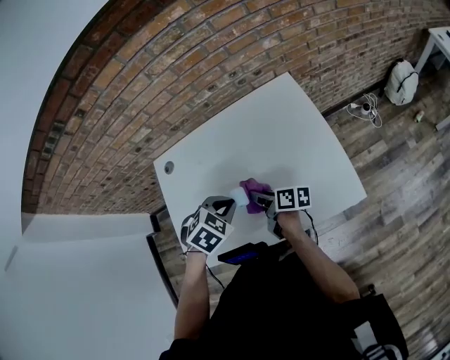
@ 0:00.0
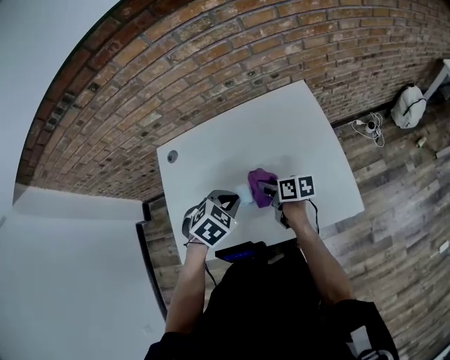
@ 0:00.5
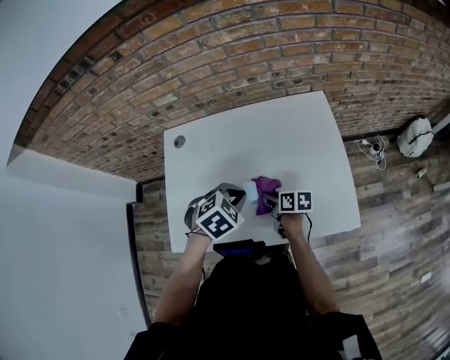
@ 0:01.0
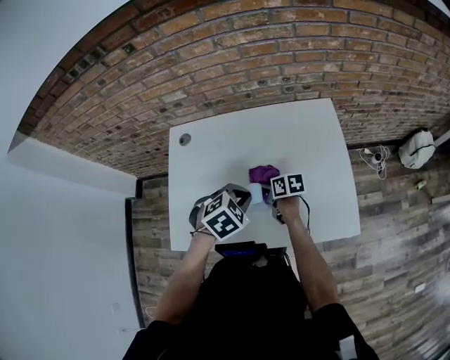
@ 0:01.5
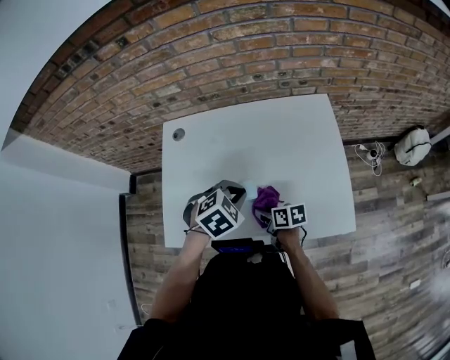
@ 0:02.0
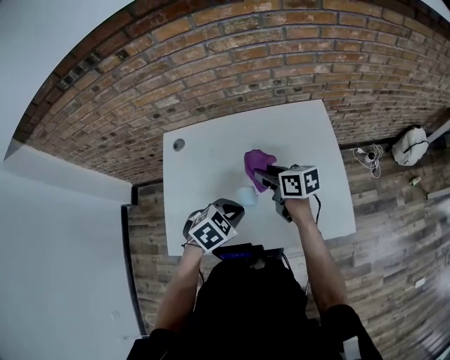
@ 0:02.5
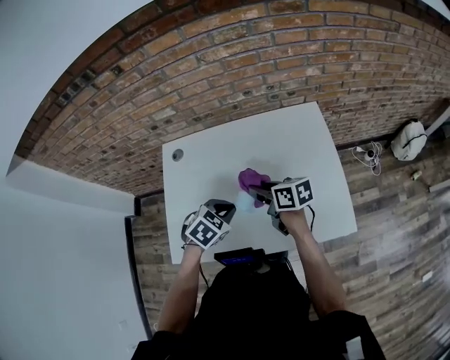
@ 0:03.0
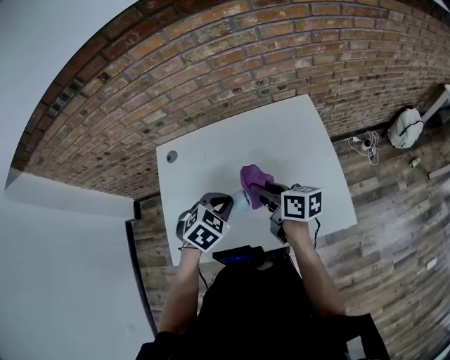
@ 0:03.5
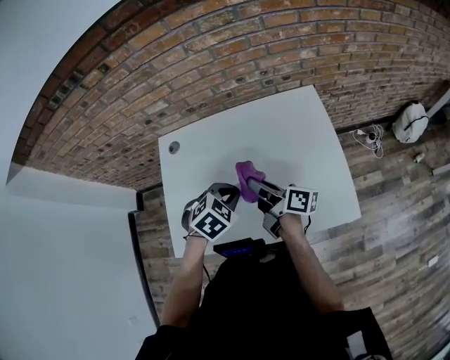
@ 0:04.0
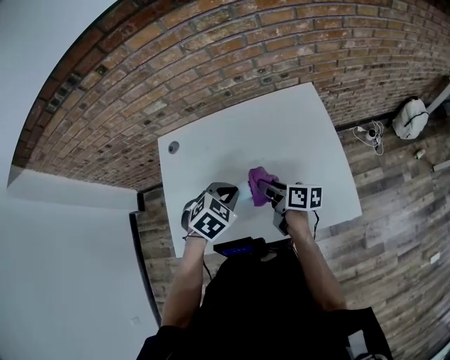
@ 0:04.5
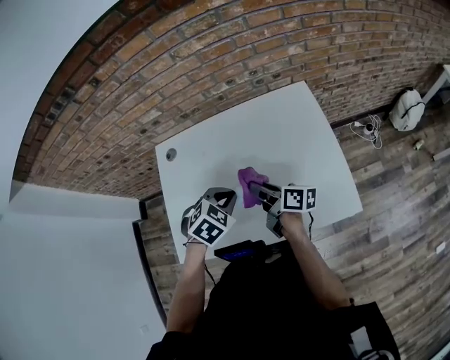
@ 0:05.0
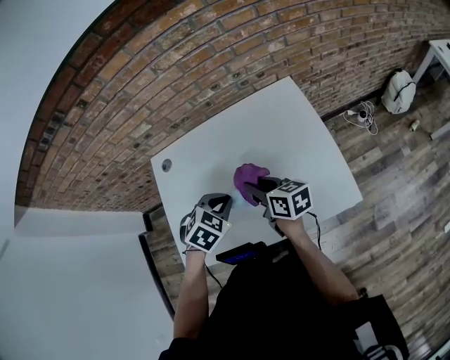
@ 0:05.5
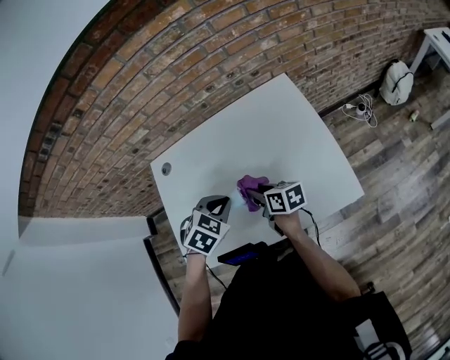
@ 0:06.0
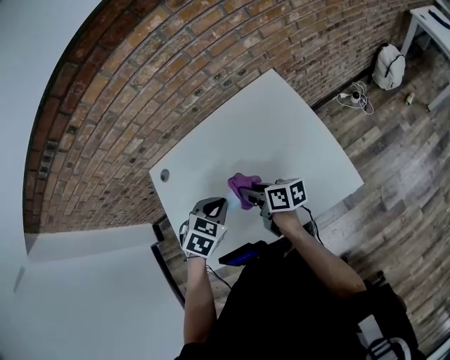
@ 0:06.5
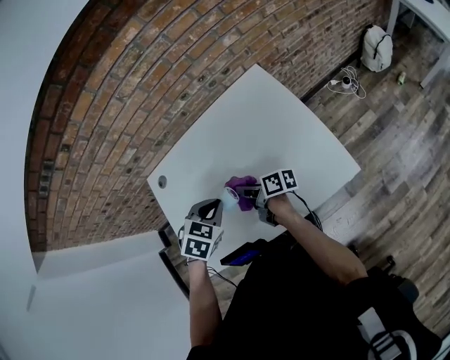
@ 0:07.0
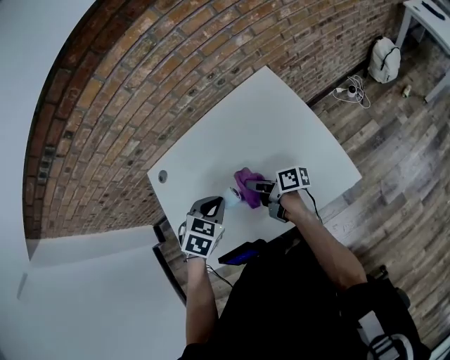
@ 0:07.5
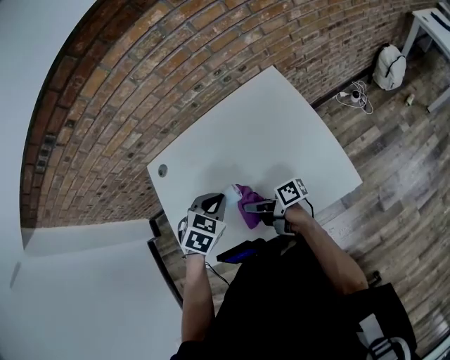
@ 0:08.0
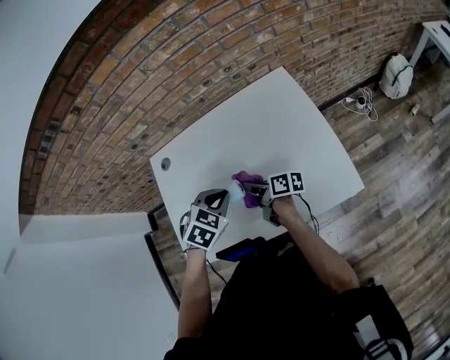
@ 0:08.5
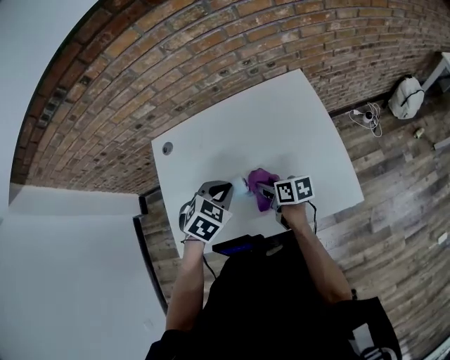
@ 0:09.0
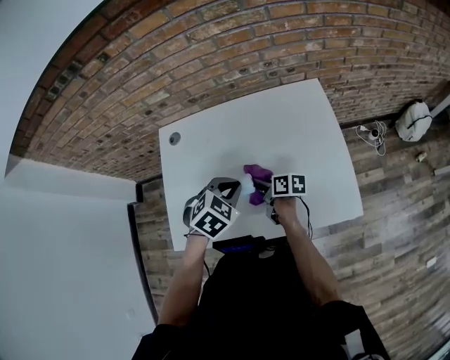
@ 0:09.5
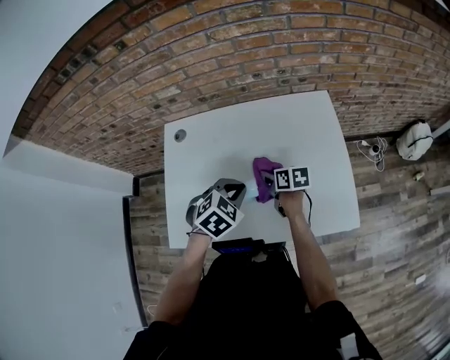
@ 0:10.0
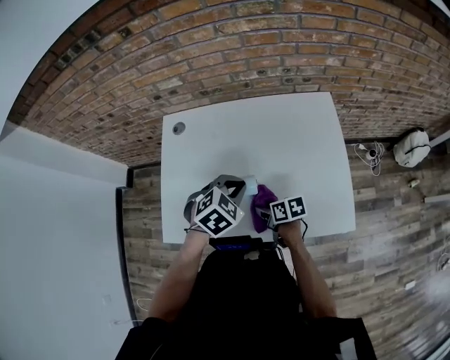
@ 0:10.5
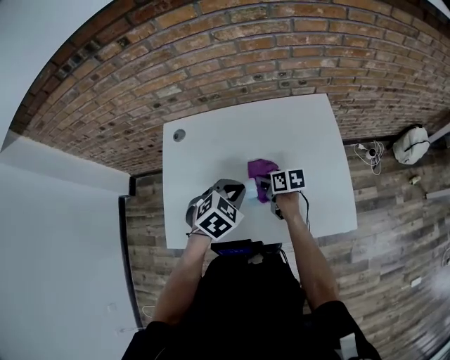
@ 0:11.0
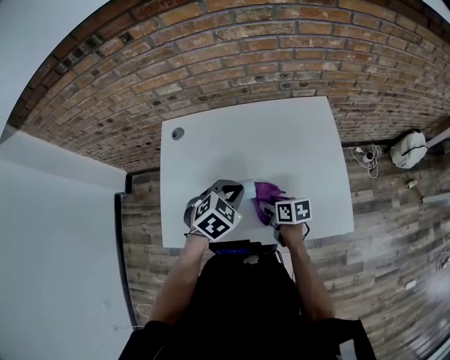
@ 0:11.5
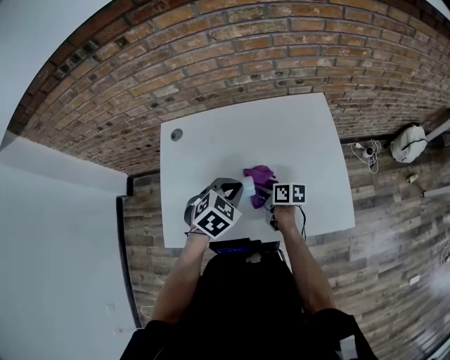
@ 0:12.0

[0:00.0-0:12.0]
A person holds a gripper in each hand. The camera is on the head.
0:00.0 to 0:02.0: The right gripper shifts about 10 cm backward and downward, and swivels approximately 30 degrees.
0:02.0 to 0:04.0: The right gripper goes roughly 20 cm upward and forward, and angles its fingers upward, by some 40 degrees.
0:04.0 to 0:06.0: The right gripper goes up and down, approximately 10 cm each way, reversing 2 times, and changes its angle by approximately 30 degrees.
0:06.0 to 0:08.0: The right gripper moves backward, about 5 cm, and changes its angle by approximately 40 degrees.
0:08.0 to 0:10.0: The right gripper shifts approximately 10 cm forward and downward, and angles its fingers downward, by roughly 40 degrees.
0:10.0 to 0:12.0: The right gripper swings forward and backward, some 10 cm each way, with 3 reversals.

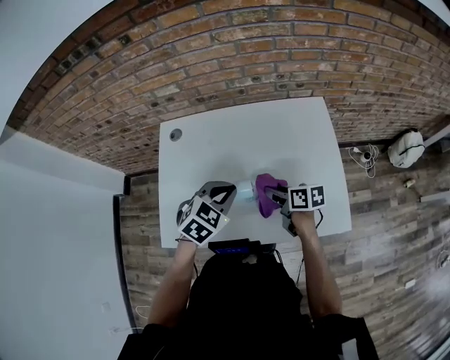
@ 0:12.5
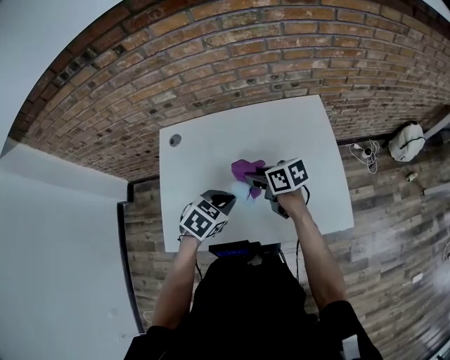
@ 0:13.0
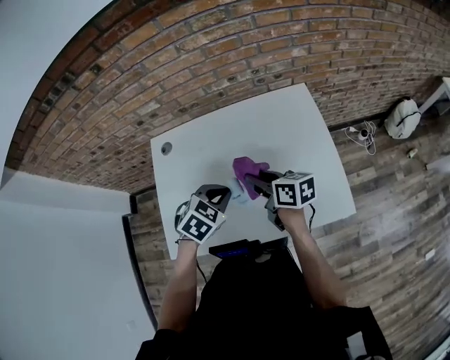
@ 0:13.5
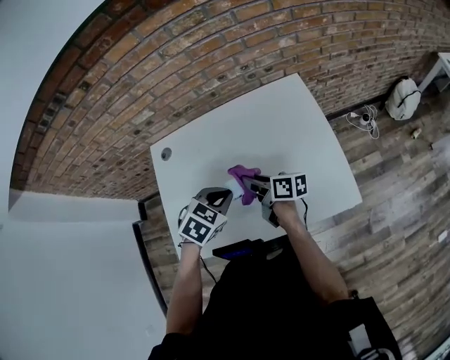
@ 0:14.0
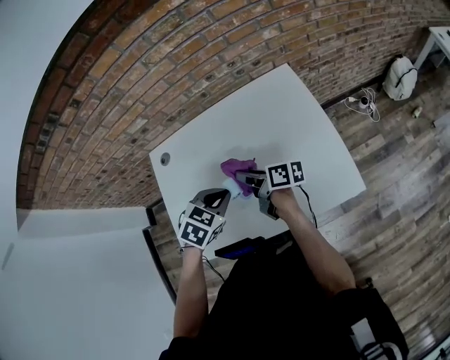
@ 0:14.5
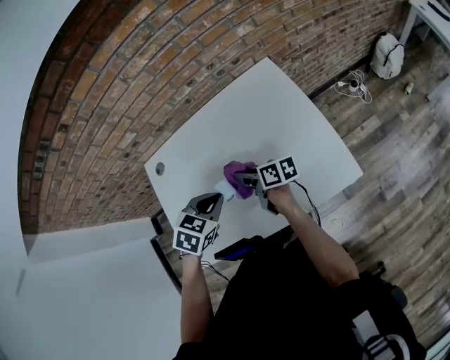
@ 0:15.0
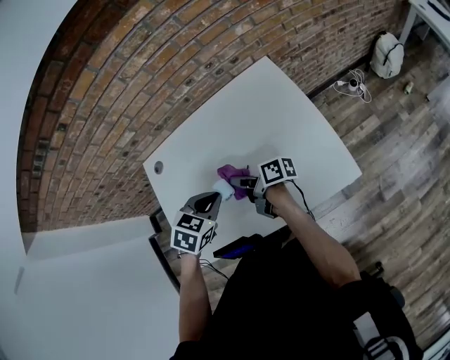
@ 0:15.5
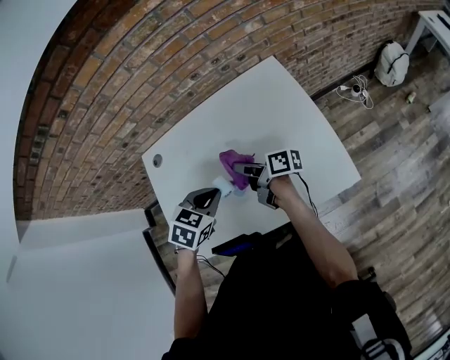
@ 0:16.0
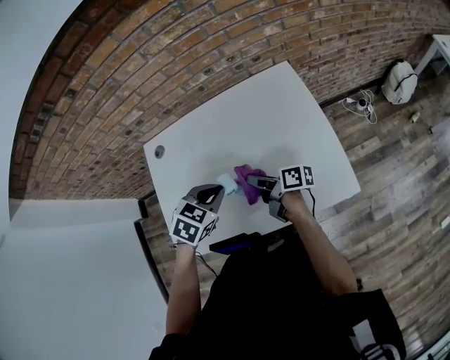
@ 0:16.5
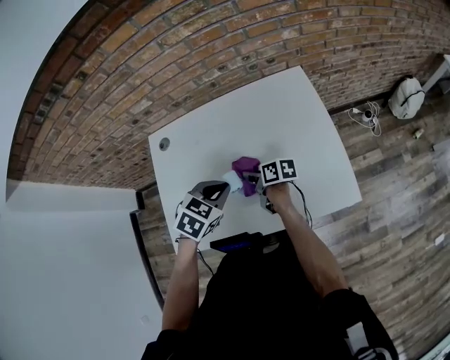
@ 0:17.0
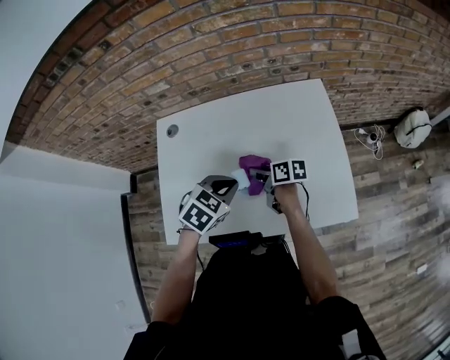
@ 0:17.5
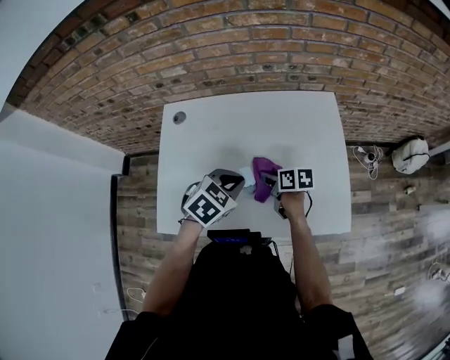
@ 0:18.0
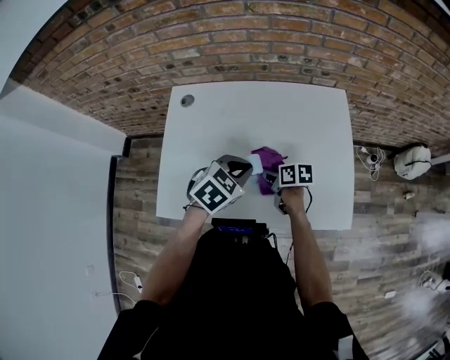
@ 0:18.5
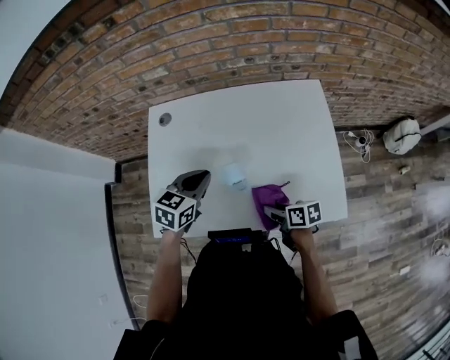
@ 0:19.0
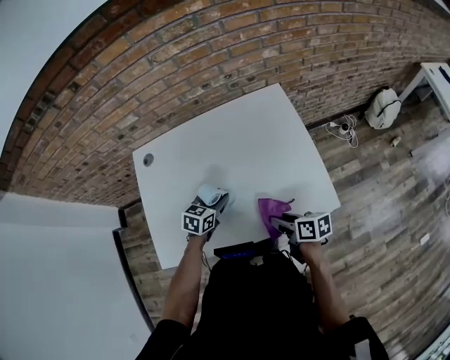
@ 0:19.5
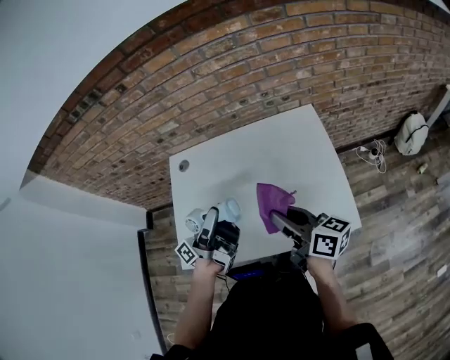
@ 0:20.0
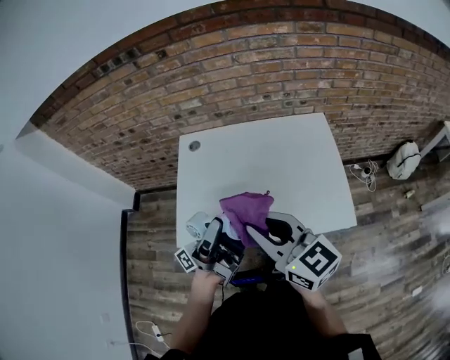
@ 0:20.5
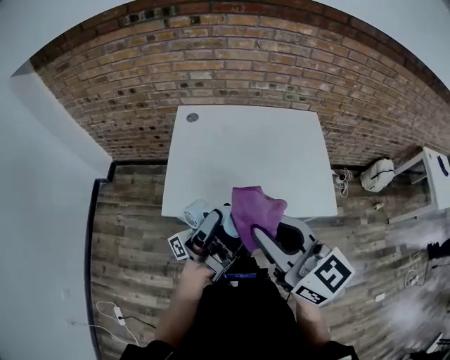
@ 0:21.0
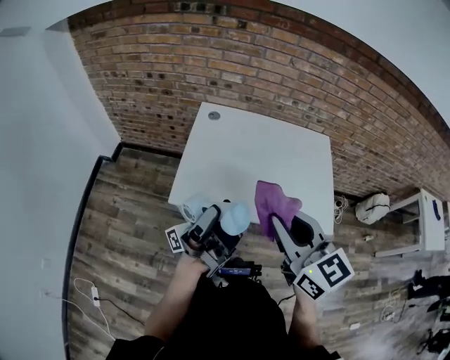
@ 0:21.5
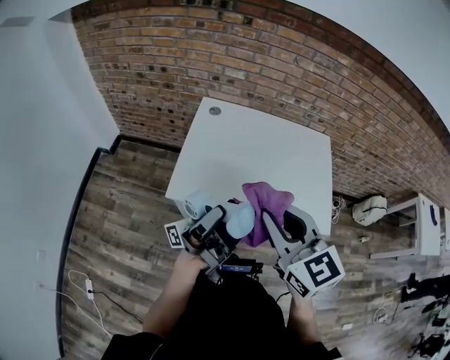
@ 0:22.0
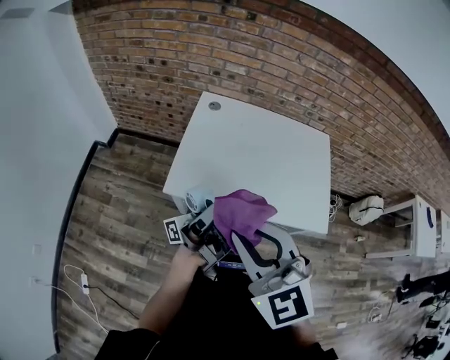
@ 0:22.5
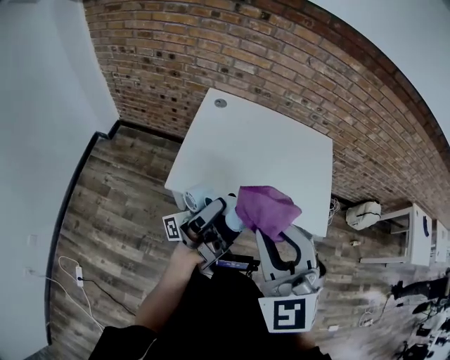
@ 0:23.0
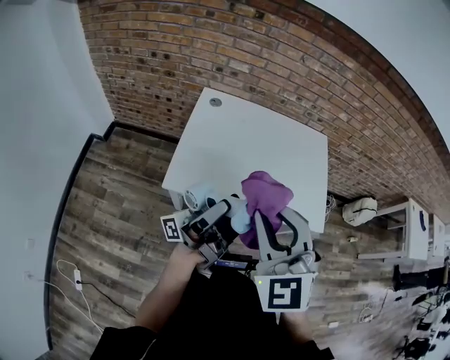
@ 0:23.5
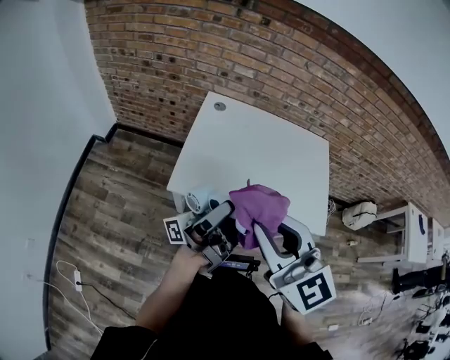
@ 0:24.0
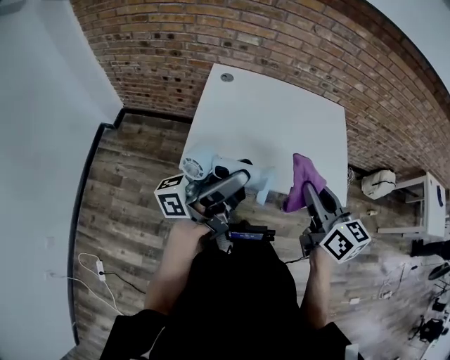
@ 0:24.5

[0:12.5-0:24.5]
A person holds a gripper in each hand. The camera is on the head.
0:12.5 to 0:14.5: The right gripper shifts by some 5 cm, and changes its angle by about 30 degrees.
0:14.5 to 0:16.5: The right gripper ends up roughly 5 cm from where it was.
0:16.5 to 0:18.5: The right gripper heads downward, covering some 10 cm, and tilts its fingers some 30 degrees downward.
0:18.5 to 0:20.5: The left gripper heads upward, backward and to the left, covering some 25 cm, points its fingers roughly 90 degrees further upward, and opens, while the right gripper travels upward and backward by approximately 40 cm, and points its fingers roughly 30 degrees further upward.
0:20.5 to 0:22.5: The left gripper heads backward and to the left, covering some 15 cm, while the right gripper heads to the left and backward, covering approximately 20 cm, and rotates approximately 40 degrees.
0:22.5 to 0:24.5: The right gripper travels to the right, downward and forward by roughly 15 cm, and rolls clockwise, seen from behind, by about 50 degrees. Meanwhile the left gripper rotates about 30 degrees.

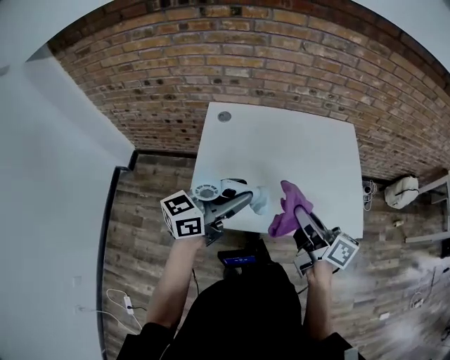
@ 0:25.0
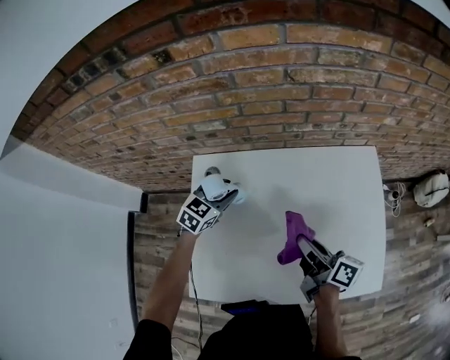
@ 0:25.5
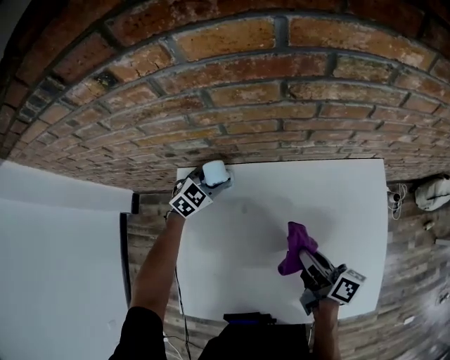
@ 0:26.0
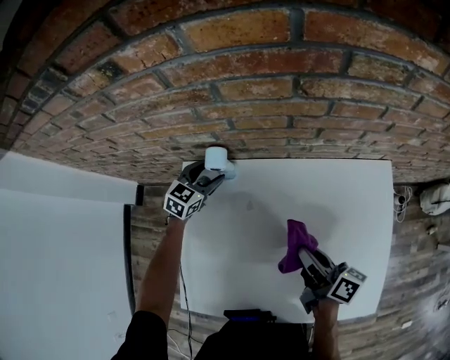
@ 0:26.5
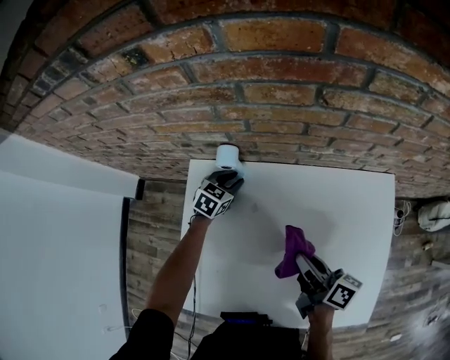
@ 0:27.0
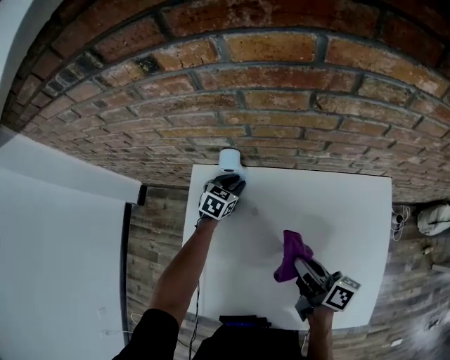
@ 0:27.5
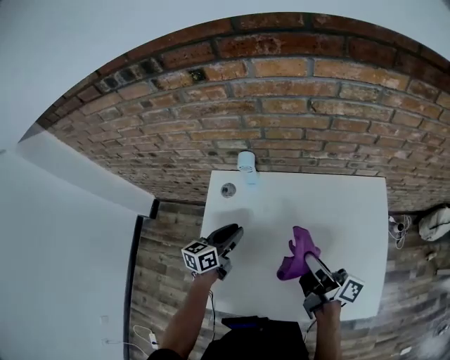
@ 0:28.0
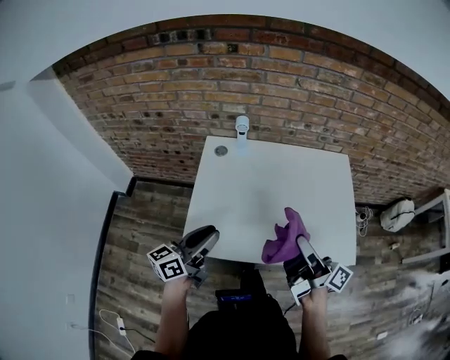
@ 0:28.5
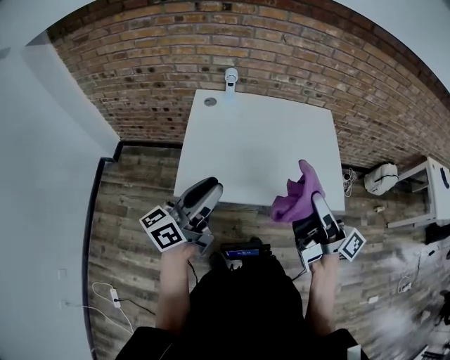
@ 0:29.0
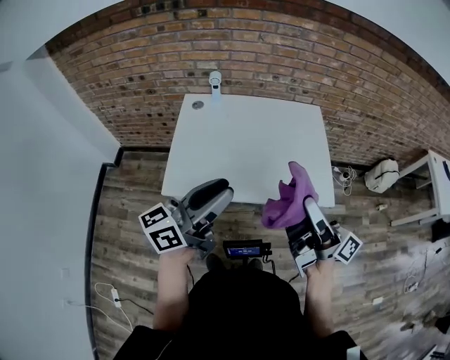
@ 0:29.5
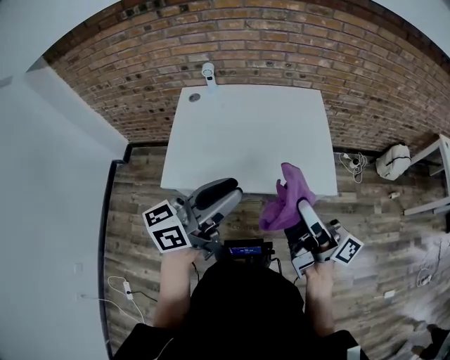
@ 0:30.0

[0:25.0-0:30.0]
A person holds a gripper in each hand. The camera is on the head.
0:25.0 to 0:27.5: The right gripper shifts some 30 cm forward and downward. Meanwhile the left gripper heads forward and downward, covering some 60 cm, points its fingers approximately 50 degrees further downward, and opens, then closes once more.
0:27.5 to 0:30.0: The two grippers travel together, backward, some 60 cm. The right gripper heads upward, covering about 25 cm, and angles its fingers upward, by approximately 40 degrees. The left gripper heads upward, covering roughly 40 cm, and points its fingers approximately 50 degrees further upward.
